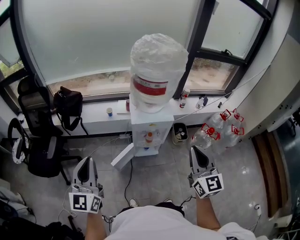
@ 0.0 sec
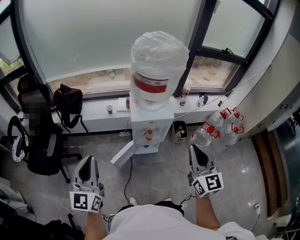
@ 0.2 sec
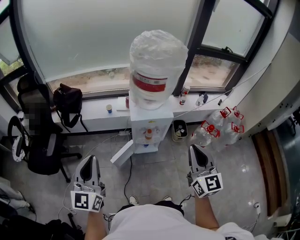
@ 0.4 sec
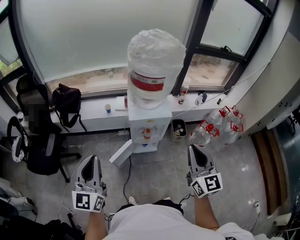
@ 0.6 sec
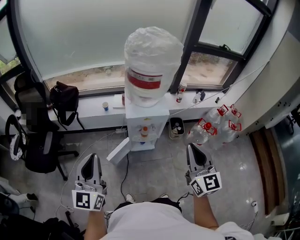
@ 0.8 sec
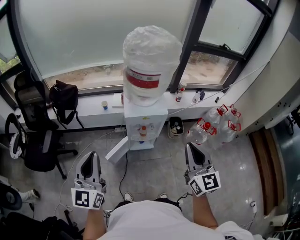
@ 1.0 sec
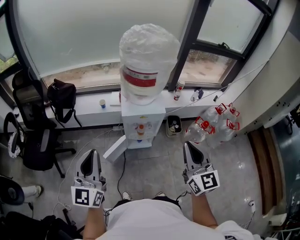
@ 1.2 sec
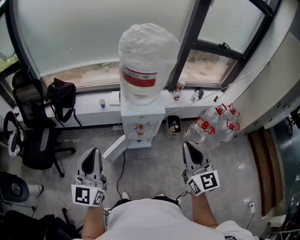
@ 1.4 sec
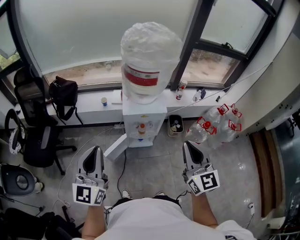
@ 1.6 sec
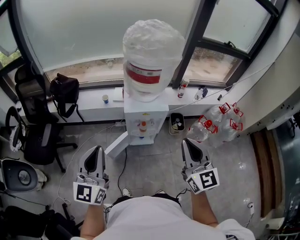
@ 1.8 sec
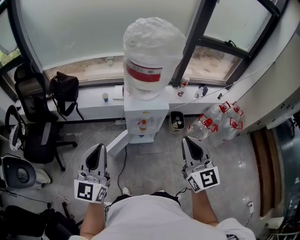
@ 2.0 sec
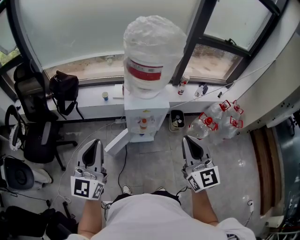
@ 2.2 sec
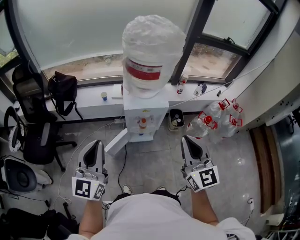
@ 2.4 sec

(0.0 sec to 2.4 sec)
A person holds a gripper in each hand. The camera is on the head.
0.0 sec - 1.2 sec: The left gripper shifts some 5 cm to the right.
1.2 sec - 2.4 sec: There are only small adjustments of the grippers.

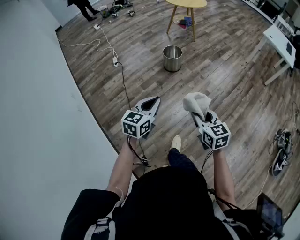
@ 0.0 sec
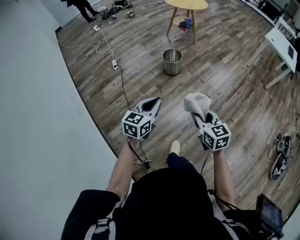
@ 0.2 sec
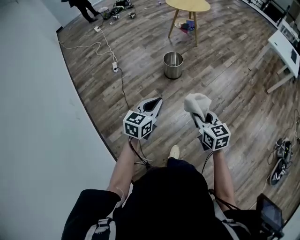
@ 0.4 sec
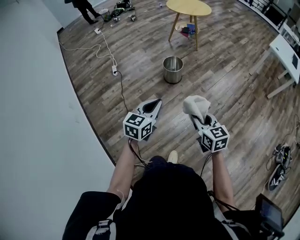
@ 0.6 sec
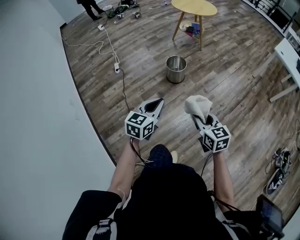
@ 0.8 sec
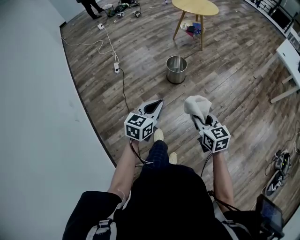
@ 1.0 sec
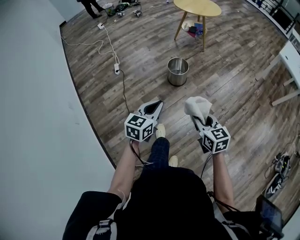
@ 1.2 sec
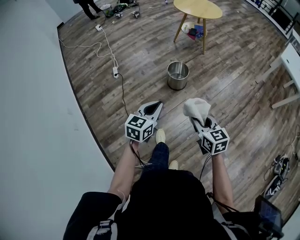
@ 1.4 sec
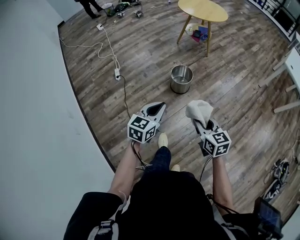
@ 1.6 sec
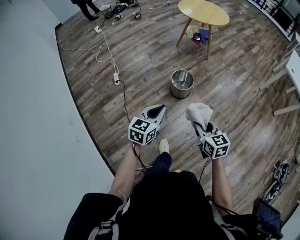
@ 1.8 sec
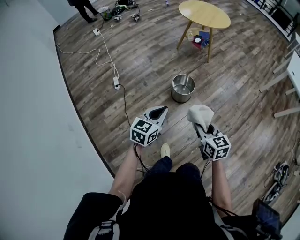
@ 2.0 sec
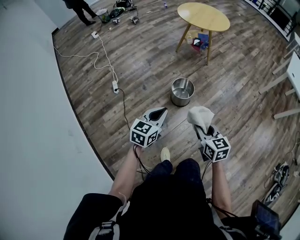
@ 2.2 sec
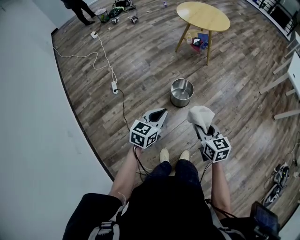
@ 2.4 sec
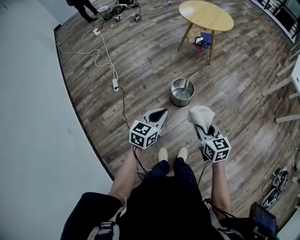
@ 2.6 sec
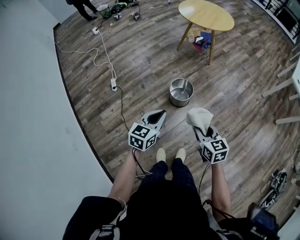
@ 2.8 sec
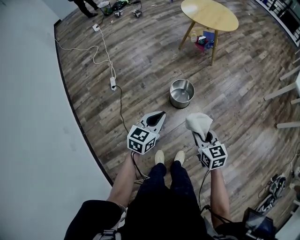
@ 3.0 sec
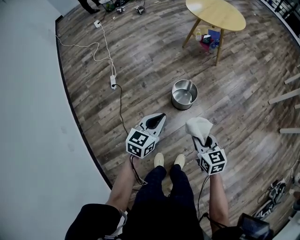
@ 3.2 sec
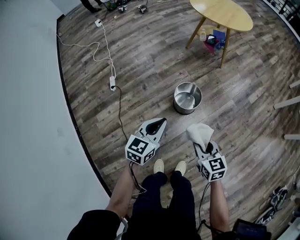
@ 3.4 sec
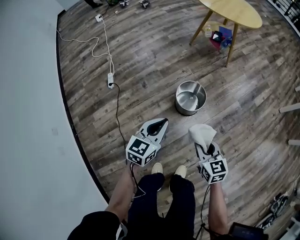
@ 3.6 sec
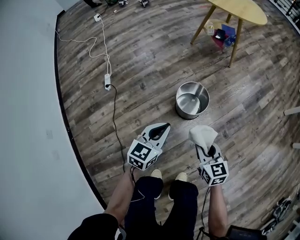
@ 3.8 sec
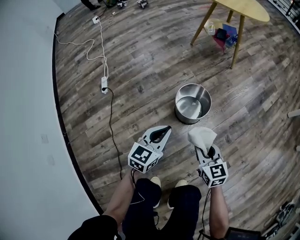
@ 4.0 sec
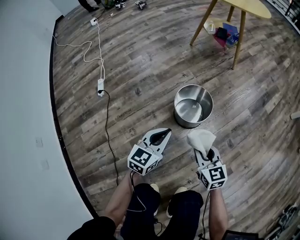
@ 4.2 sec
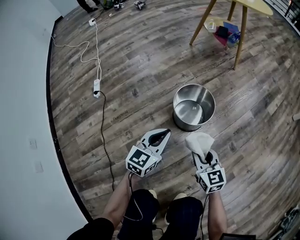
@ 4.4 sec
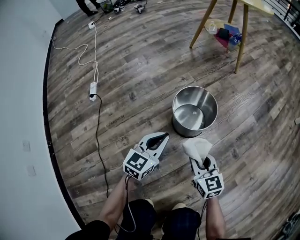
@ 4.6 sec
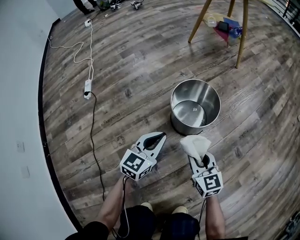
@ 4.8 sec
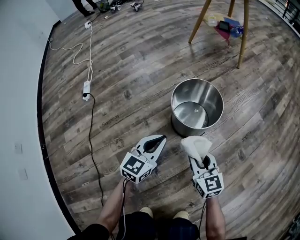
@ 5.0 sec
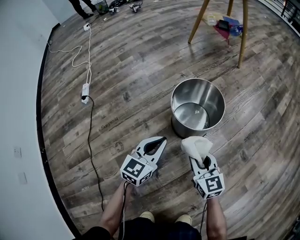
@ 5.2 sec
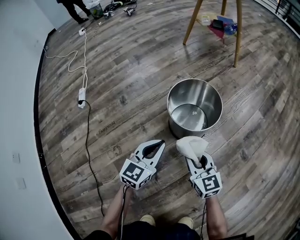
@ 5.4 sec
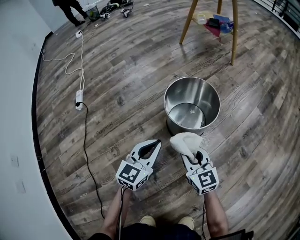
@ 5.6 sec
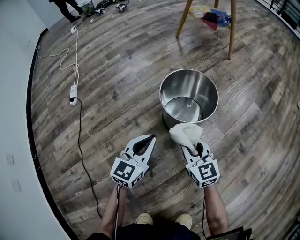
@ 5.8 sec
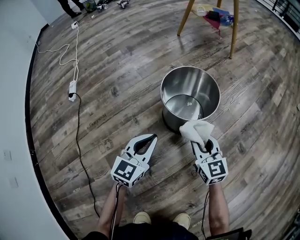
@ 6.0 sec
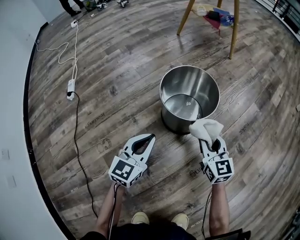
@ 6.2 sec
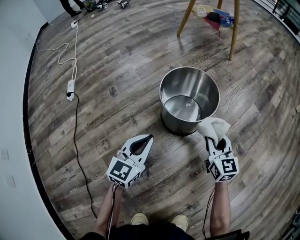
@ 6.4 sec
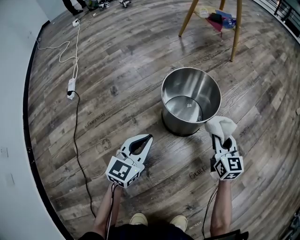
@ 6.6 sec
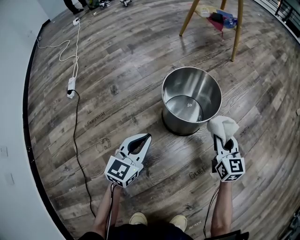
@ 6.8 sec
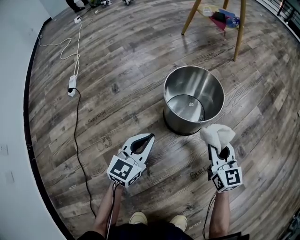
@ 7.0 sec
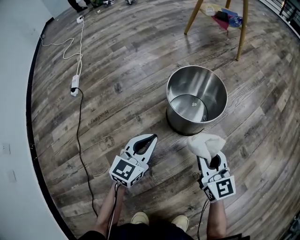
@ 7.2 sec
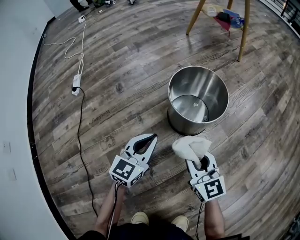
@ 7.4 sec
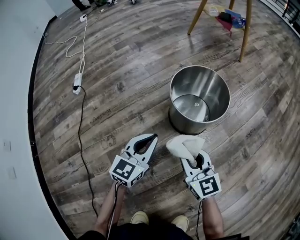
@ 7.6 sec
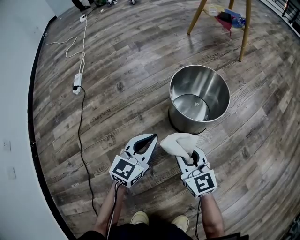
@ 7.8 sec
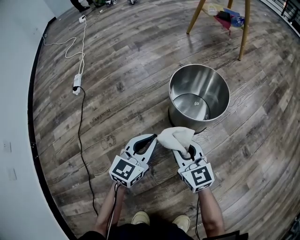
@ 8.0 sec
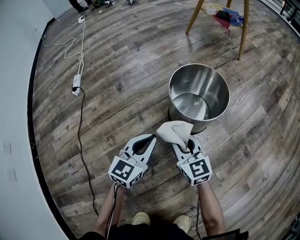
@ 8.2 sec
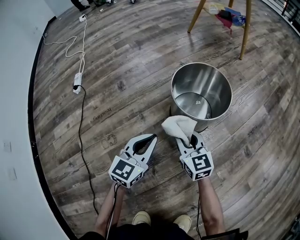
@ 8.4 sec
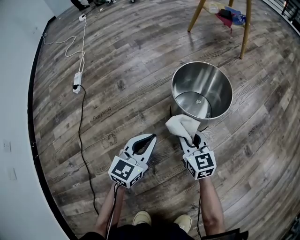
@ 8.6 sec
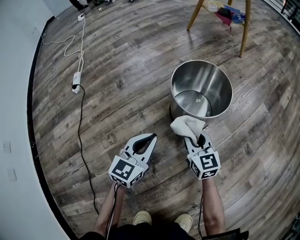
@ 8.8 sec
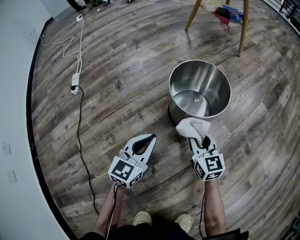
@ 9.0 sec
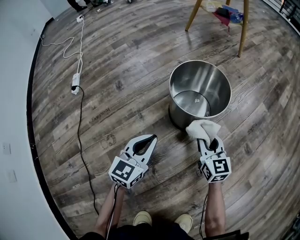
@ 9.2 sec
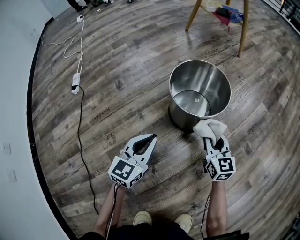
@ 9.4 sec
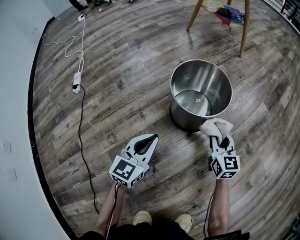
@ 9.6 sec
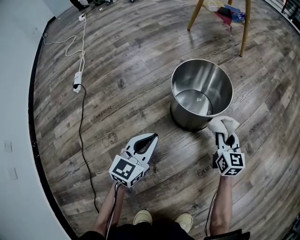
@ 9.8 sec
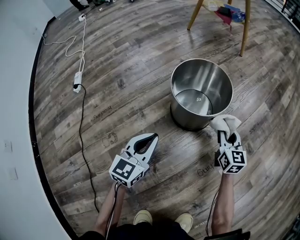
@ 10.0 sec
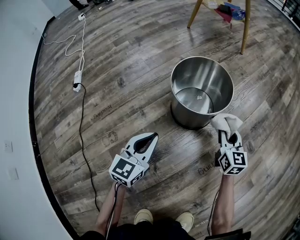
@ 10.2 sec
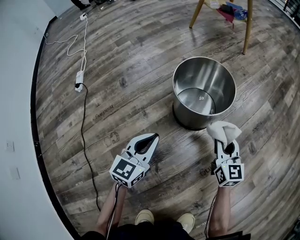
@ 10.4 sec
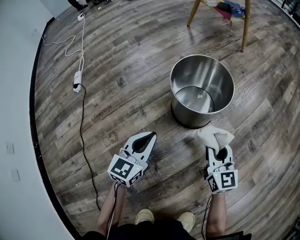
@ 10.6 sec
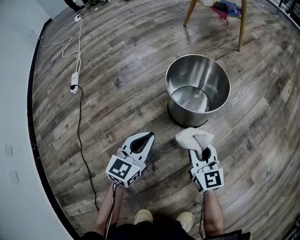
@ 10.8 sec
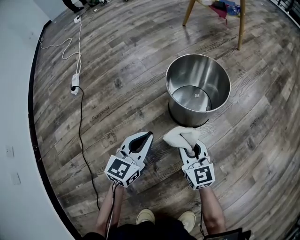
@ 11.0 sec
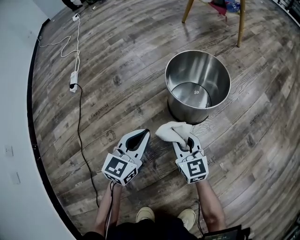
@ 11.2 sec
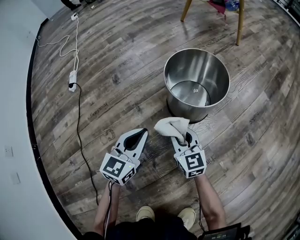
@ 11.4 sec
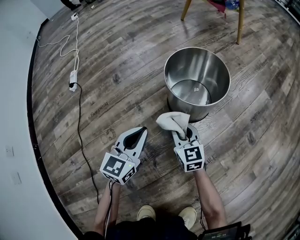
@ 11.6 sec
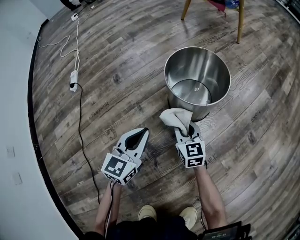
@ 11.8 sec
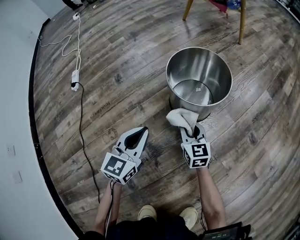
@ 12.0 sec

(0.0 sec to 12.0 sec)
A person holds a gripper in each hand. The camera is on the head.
0.0 sec - 1.6 sec: The grippers both shift forward by approximately 35 cm.
1.6 sec - 3.0 sec: The grippers both shift forward by roughly 20 cm.
3.0 sec - 4.4 sec: Both grippers travel together downward, about 40 cm.
4.4 sec - 6.0 sec: The left gripper travels downward by some 20 cm; the right gripper travels downward and forward by approximately 20 cm.
6.0 sec - 7.6 sec: The right gripper heads to the left and backward, covering roughly 10 cm.
7.6 sec - 9.0 sec: The right gripper is displaced forward and downward by approximately 10 cm.
9.0 sec - 10.4 sec: The right gripper is displaced to the right by roughly 10 cm.
10.4 sec - 12.0 sec: The right gripper travels to the left and downward by about 15 cm.

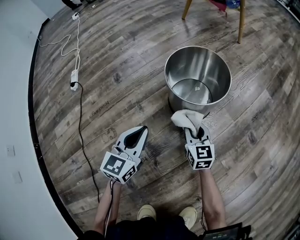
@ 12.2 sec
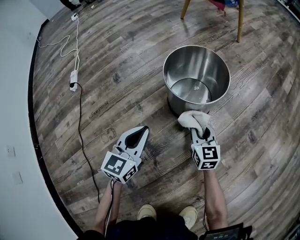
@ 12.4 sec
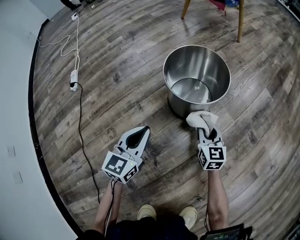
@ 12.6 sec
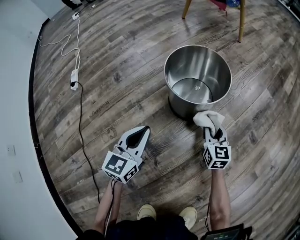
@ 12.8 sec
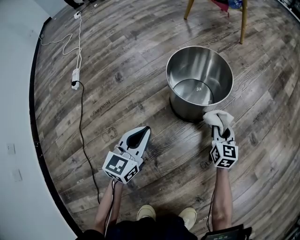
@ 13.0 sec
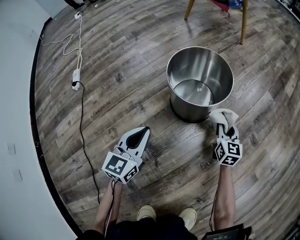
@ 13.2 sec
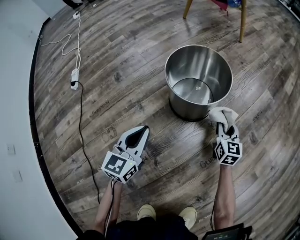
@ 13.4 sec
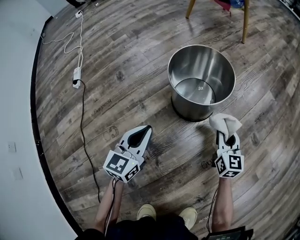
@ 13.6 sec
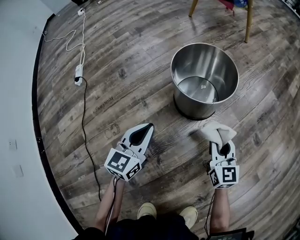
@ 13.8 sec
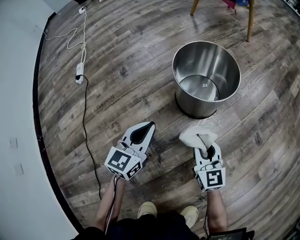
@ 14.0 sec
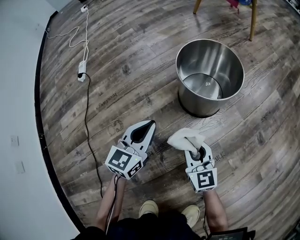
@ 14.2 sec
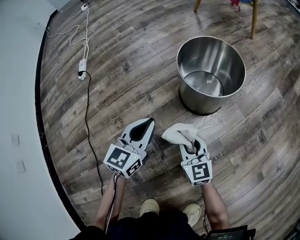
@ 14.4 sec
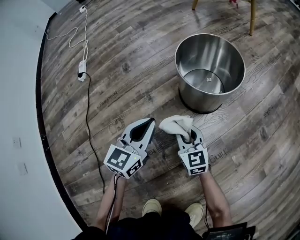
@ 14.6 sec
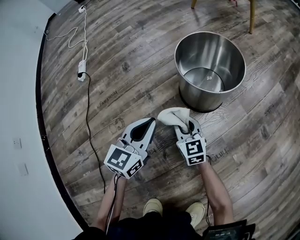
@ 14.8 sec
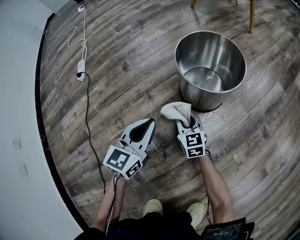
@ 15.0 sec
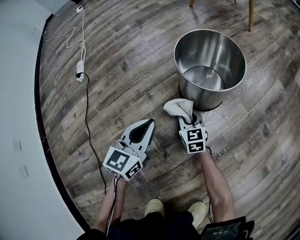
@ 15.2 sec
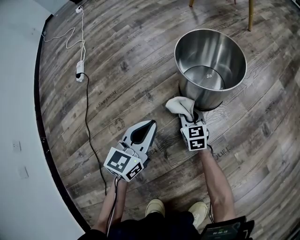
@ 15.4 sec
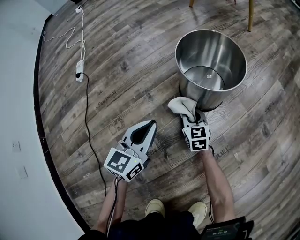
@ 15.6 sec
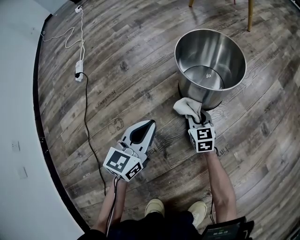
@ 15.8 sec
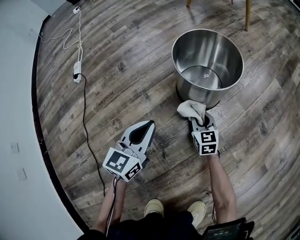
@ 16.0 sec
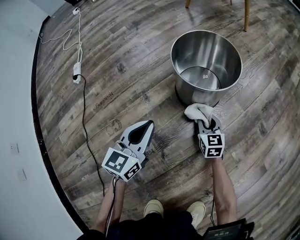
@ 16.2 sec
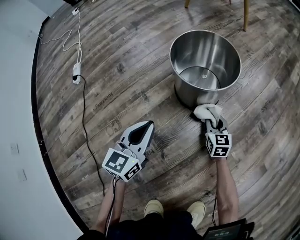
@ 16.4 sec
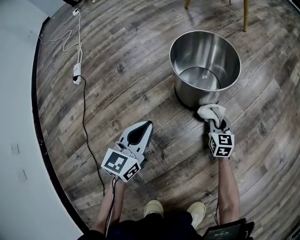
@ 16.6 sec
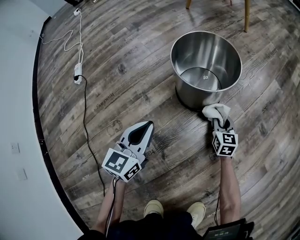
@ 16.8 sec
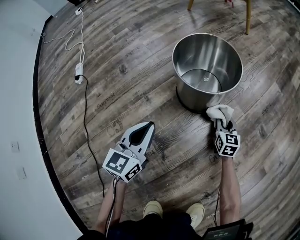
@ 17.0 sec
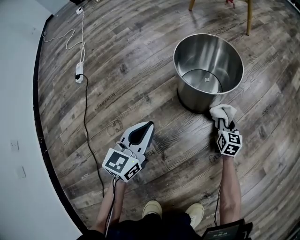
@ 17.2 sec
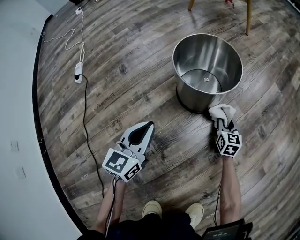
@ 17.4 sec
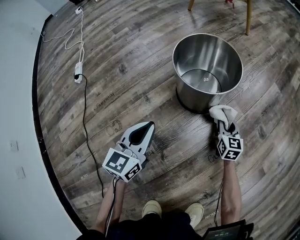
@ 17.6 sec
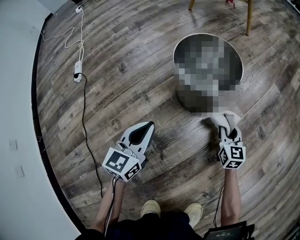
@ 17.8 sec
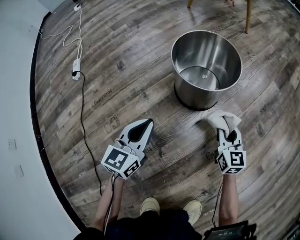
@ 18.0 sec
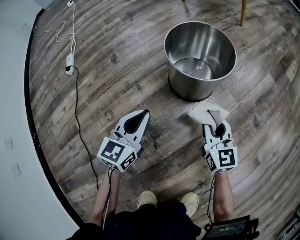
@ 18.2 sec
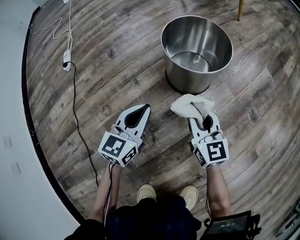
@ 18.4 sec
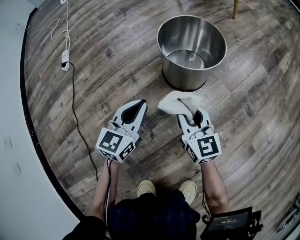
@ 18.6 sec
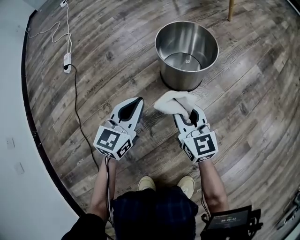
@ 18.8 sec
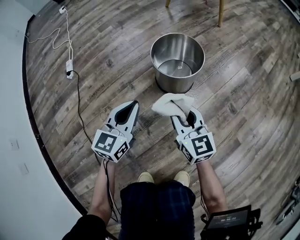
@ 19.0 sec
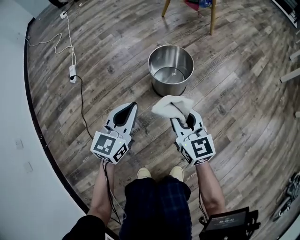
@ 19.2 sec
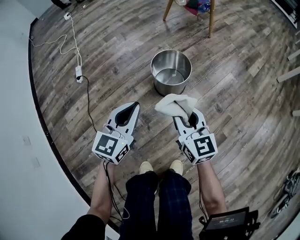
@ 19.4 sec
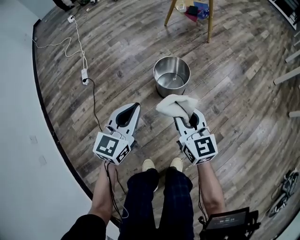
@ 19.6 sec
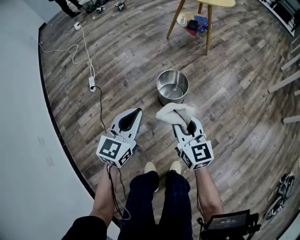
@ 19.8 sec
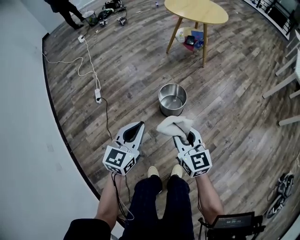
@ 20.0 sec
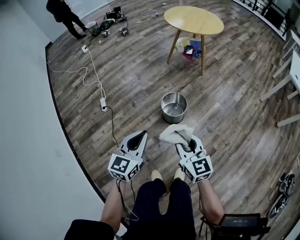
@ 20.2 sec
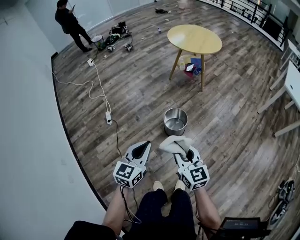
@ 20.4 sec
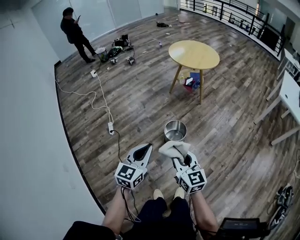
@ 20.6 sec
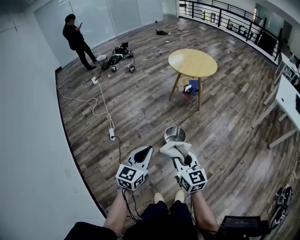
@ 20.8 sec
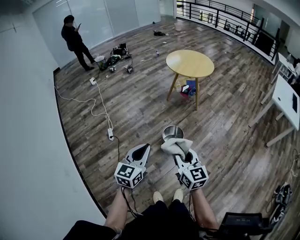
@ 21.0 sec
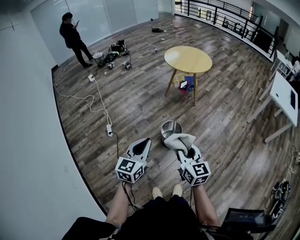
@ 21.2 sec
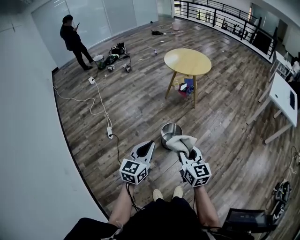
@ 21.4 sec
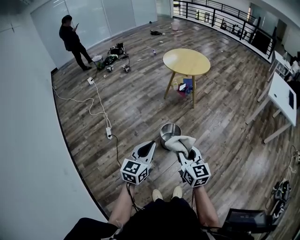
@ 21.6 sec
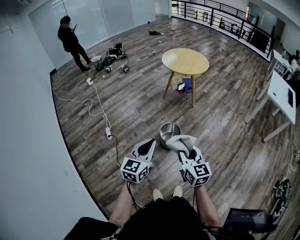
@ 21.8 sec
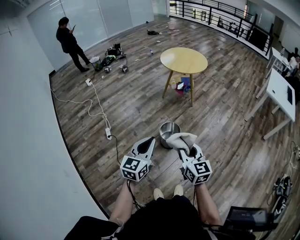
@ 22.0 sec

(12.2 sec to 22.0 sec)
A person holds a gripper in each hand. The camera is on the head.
12.2 sec - 13.6 sec: The right gripper moves to the right, about 15 cm.
13.6 sec - 15.0 sec: The right gripper travels to the left by roughly 20 cm, and turns by some 20 degrees.
15.0 sec - 16.4 sec: The right gripper goes some 15 cm to the right.
16.4 sec - 17.8 sec: The right gripper is displaced to the right by some 5 cm.
17.8 sec - 19.2 sec: The grippers both shift upward by approximately 30 cm.
19.2 sec - 20.6 sec: Both grippers move upward, roughly 50 cm.
20.6 sec - 22.0 sec: Both grippers move upward, about 5 cm.
